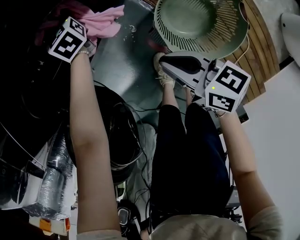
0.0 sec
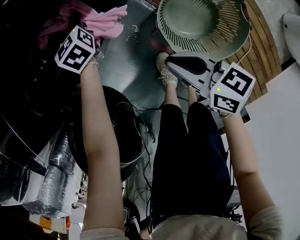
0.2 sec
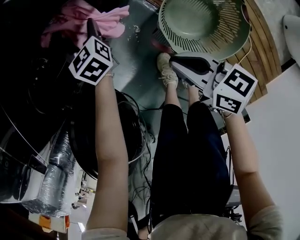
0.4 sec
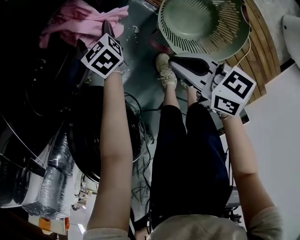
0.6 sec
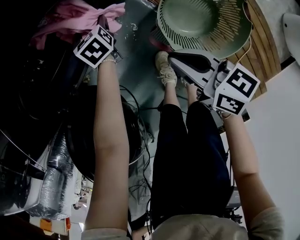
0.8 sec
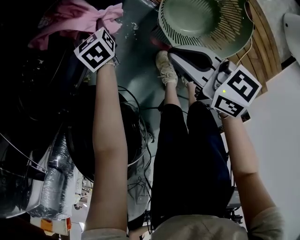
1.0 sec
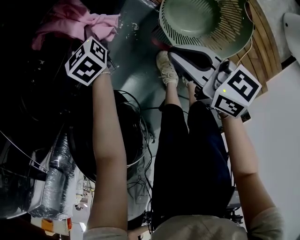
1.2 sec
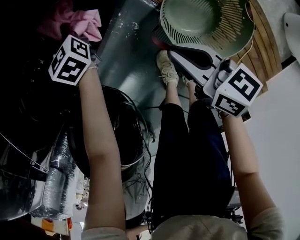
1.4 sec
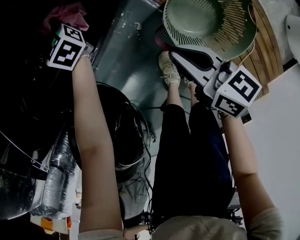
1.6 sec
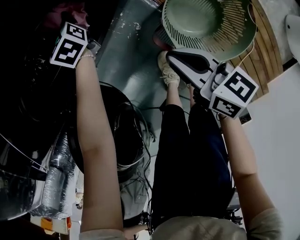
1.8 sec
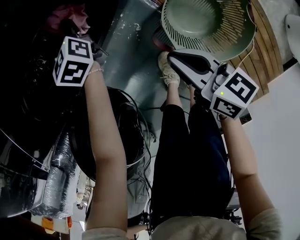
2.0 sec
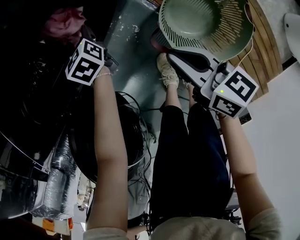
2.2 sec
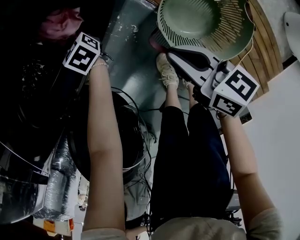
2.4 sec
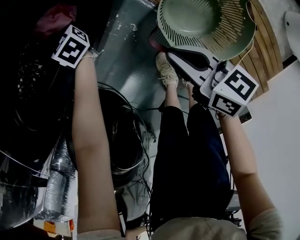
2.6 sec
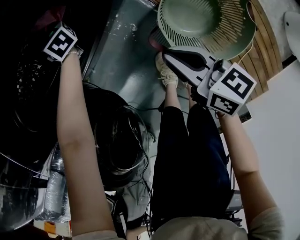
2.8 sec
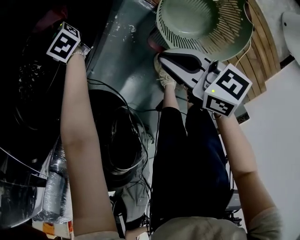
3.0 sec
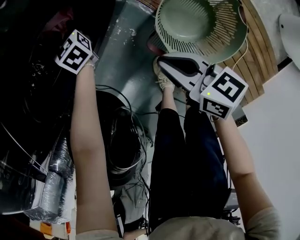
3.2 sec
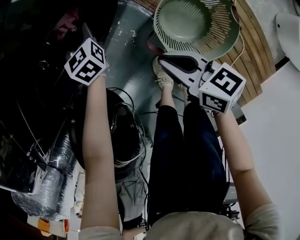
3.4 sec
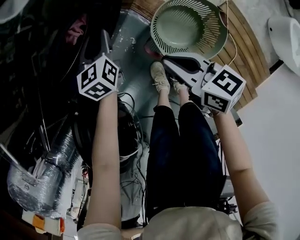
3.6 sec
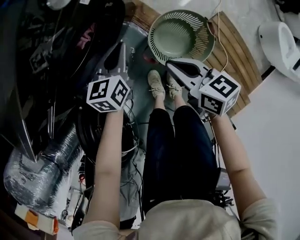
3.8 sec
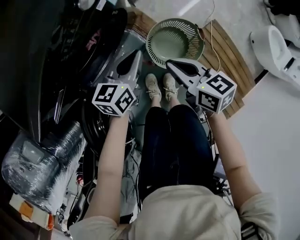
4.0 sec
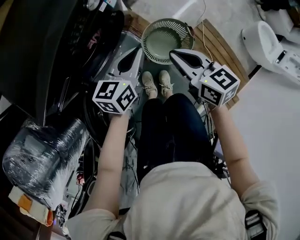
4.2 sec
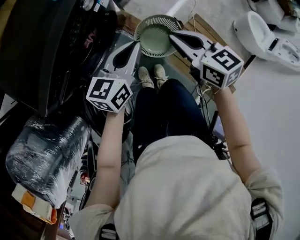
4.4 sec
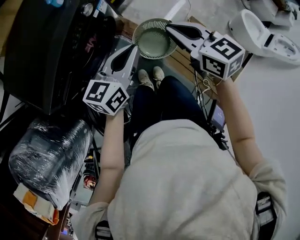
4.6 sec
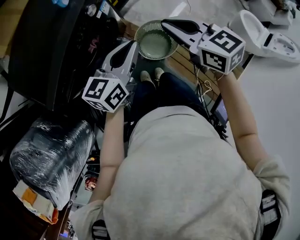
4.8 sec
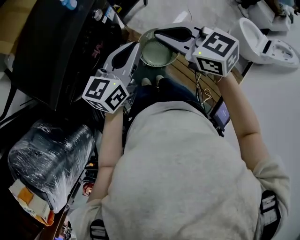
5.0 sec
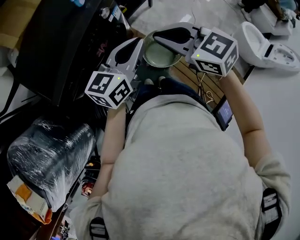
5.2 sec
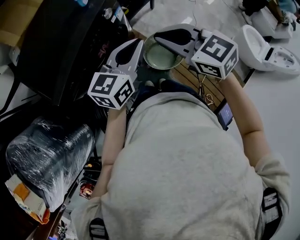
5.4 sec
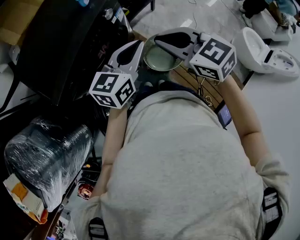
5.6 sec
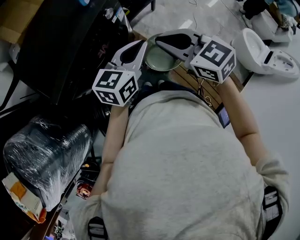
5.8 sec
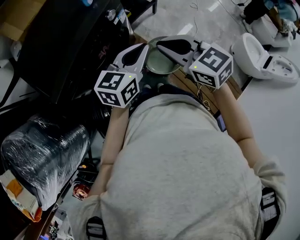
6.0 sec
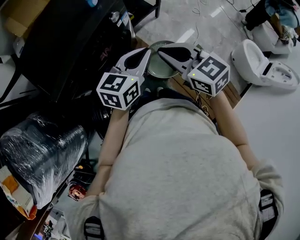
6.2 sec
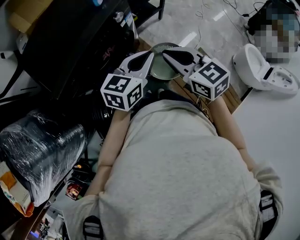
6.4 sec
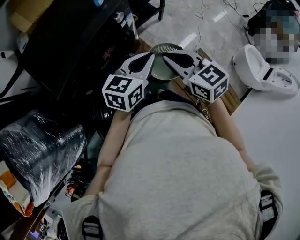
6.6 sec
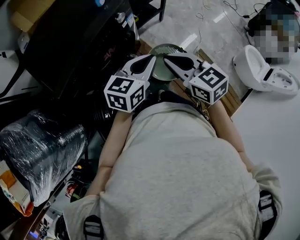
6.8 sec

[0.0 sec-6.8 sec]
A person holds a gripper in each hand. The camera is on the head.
0.0 sec to 1.4 sec: The left gripper goes backward and returns, approximately 10 cm each way, and opens, then closes once more.
1.4 sec to 2.8 sec: The left gripper swings forward and backward, approximately 10 cm each way, with 2 reversals, and opens, then closes again.
2.8 sec to 4.0 sec: The left gripper changes place by approximately 50 cm, and rotates approximately 70 degrees. Meanwhile the right gripper travels upward by roughly 25 cm.
4.0 sec to 5.4 sec: Both grippers move upward, approximately 30 cm. The left gripper rotates roughly 20 degrees. Meanwhile the right gripper rotates some 40 degrees.
5.4 sec to 6.8 sec: The right gripper ends up about 5 cm from where it was.

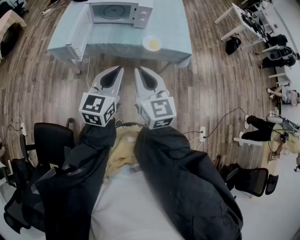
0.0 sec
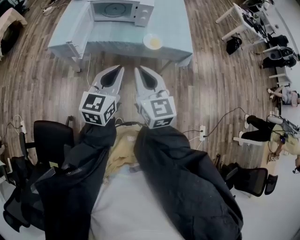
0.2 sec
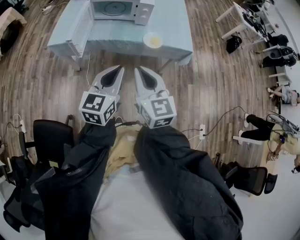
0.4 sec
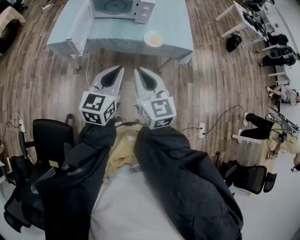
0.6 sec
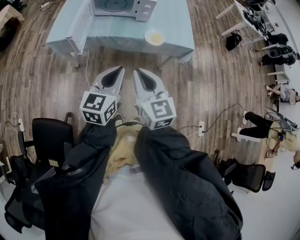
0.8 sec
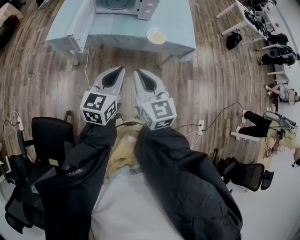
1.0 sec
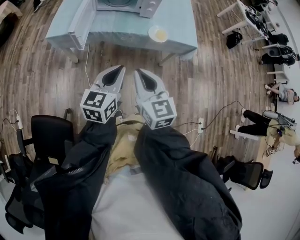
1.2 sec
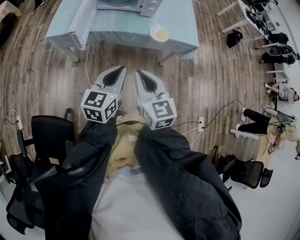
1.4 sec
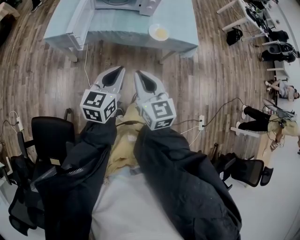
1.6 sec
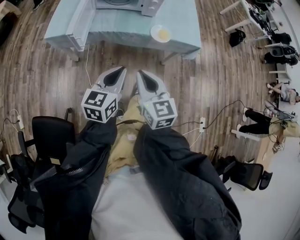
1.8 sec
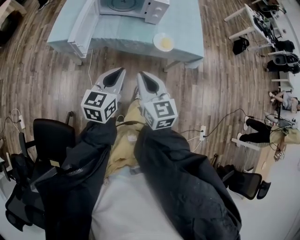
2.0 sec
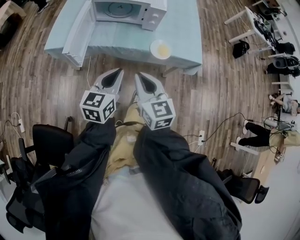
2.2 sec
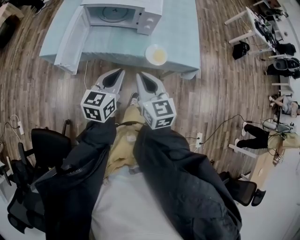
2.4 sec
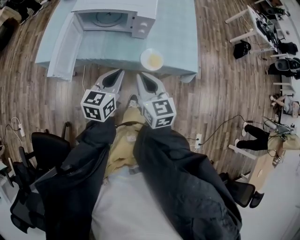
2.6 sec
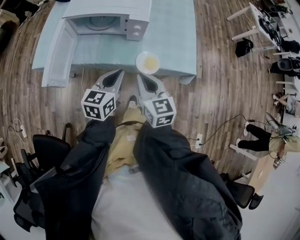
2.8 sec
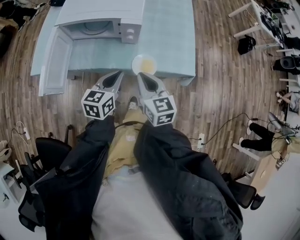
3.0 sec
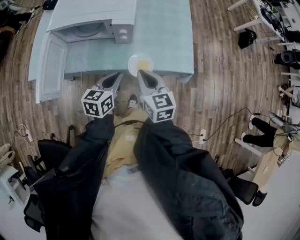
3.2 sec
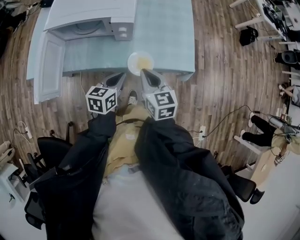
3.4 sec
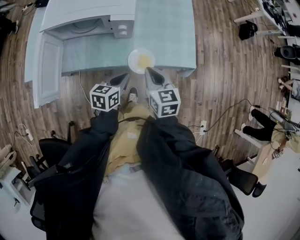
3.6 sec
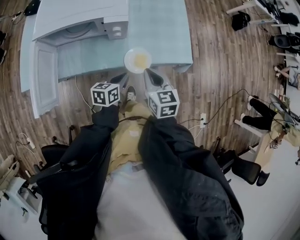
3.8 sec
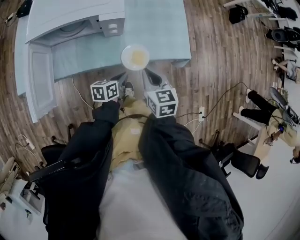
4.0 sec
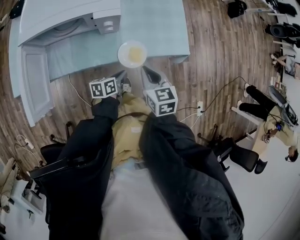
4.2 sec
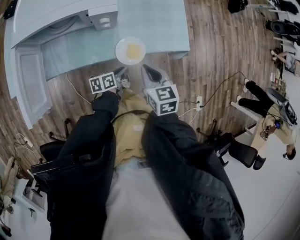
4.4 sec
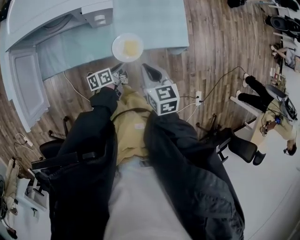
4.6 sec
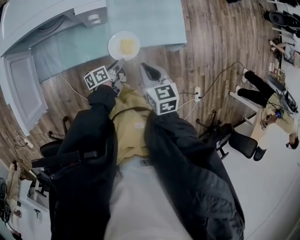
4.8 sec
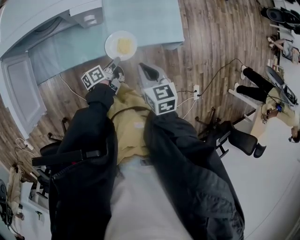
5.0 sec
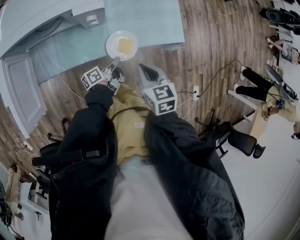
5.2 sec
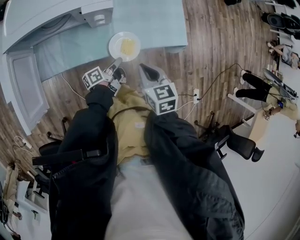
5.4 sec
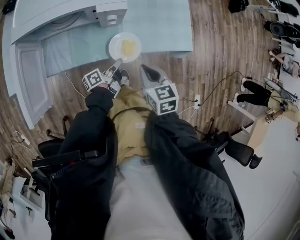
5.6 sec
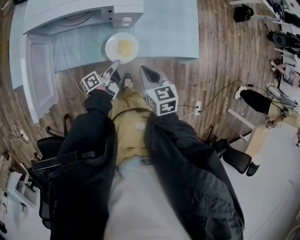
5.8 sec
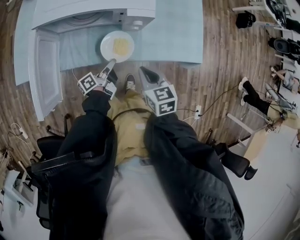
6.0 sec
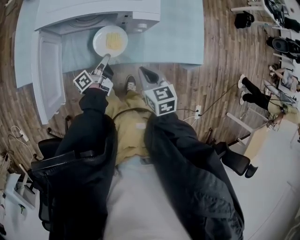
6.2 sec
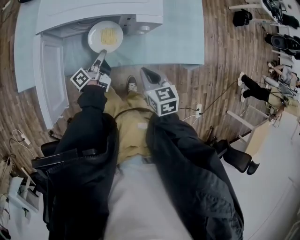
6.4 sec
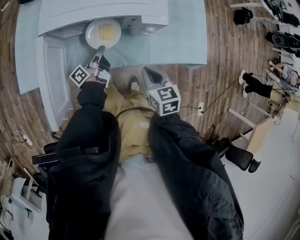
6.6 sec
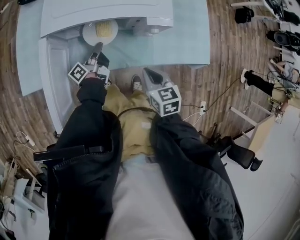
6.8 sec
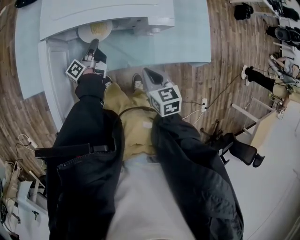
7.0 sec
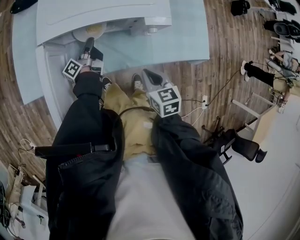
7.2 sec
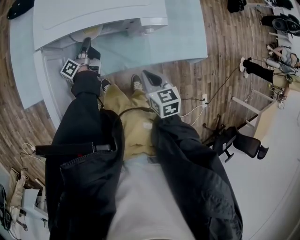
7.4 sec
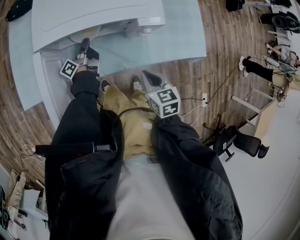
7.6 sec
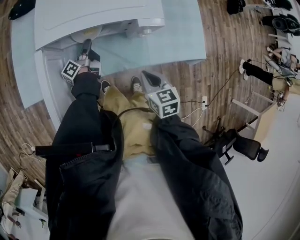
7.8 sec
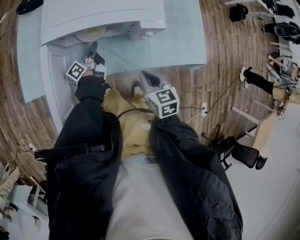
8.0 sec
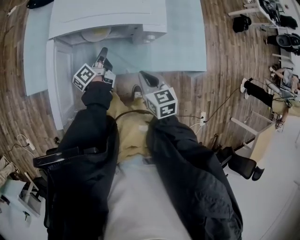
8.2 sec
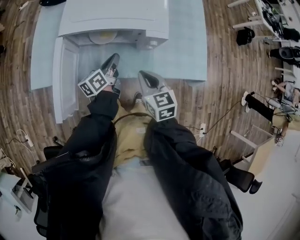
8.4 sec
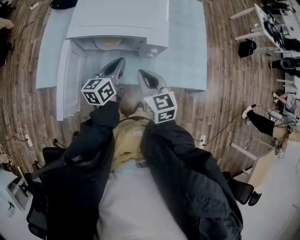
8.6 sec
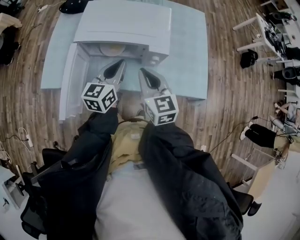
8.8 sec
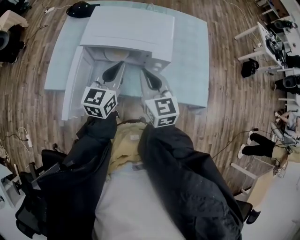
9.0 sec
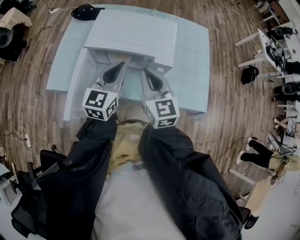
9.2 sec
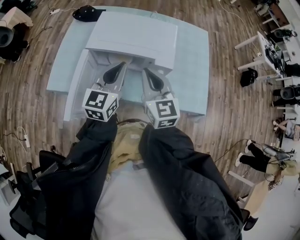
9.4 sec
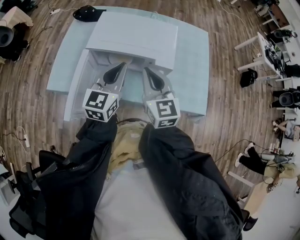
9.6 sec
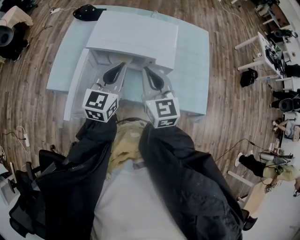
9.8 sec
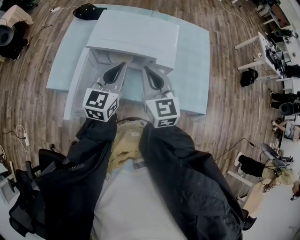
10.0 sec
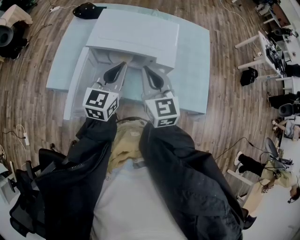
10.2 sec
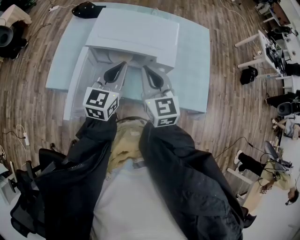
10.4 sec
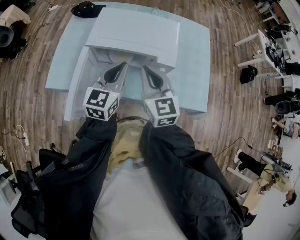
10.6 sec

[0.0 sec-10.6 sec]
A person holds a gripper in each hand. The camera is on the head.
0.0 sec to 1.6 sec: Both grippers move downward, roughly 5 cm.
1.6 sec to 3.0 sec: The right gripper travels forward and to the right by about 30 cm. The left gripper travels forward by about 30 cm.
3.0 sec to 4.6 sec: The right gripper travels downward and to the right by about 15 cm, and turns by roughly 20 degrees. Meanwhile the left gripper goes roughly 25 cm downward, rotates around the line of its fingers by roughly 50 degrees, counterclockwise from behind, and opens up.
4.6 sec to 6.0 sec: Both grippers travel together to the left, approximately 15 cm. The left gripper changes its angle by roughly 40 degrees, and closes.
6.0 sec to 7.6 sec: The right gripper shifts by roughly 5 cm, while the left gripper moves forward and to the left, some 25 cm.
7.6 sec to 9.0 sec: The right gripper goes approximately 20 cm upward, and points its fingers some 30 degrees further upward, while the left gripper is displaced upward by roughly 30 cm, and rolls clockwise, seen from behind, by approximately 80 degrees.
9.0 sec to 10.6 sec: The grippers stay close to where they were, moving slightly.

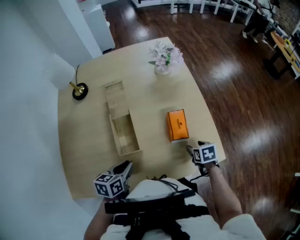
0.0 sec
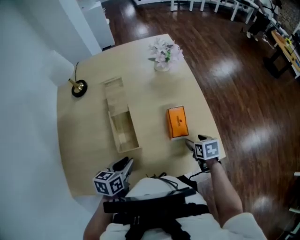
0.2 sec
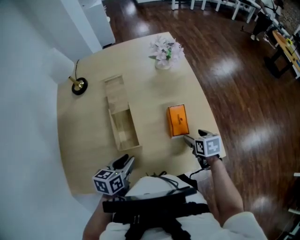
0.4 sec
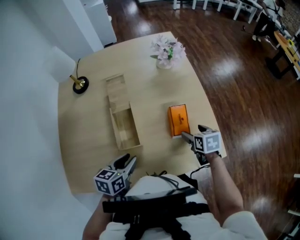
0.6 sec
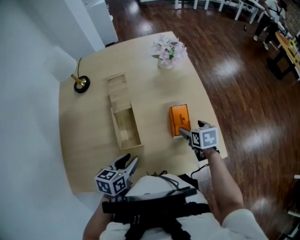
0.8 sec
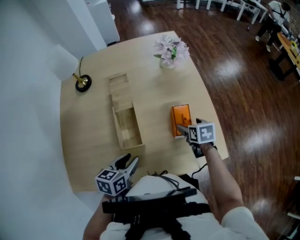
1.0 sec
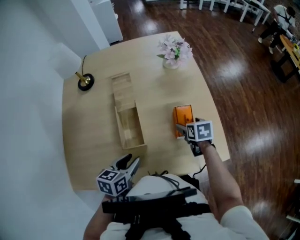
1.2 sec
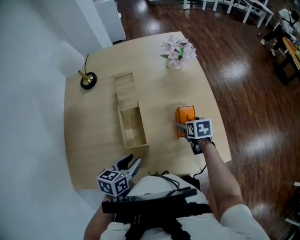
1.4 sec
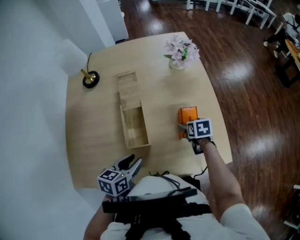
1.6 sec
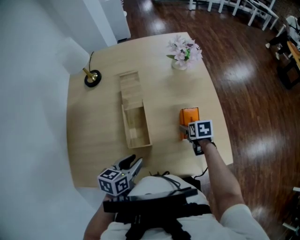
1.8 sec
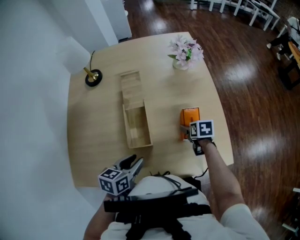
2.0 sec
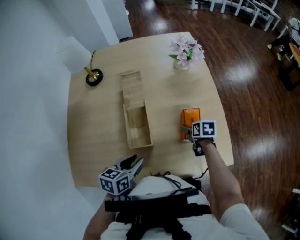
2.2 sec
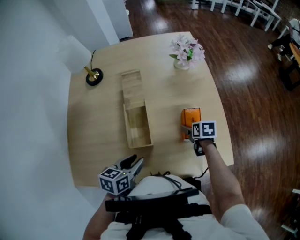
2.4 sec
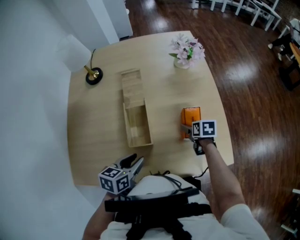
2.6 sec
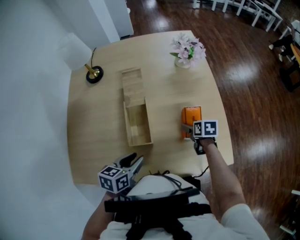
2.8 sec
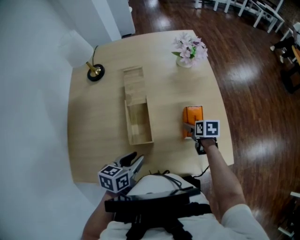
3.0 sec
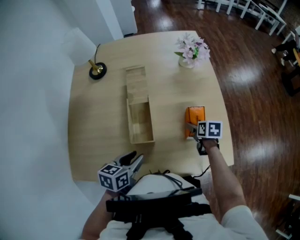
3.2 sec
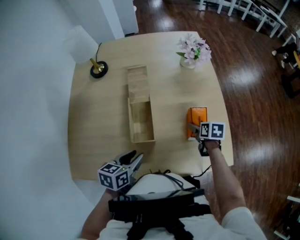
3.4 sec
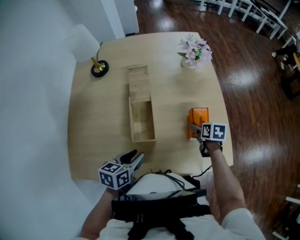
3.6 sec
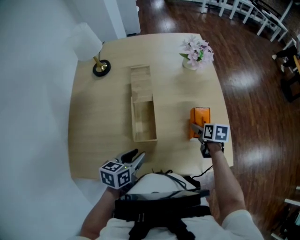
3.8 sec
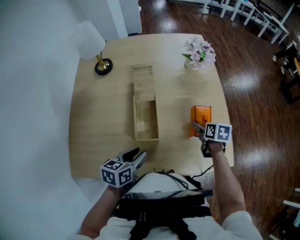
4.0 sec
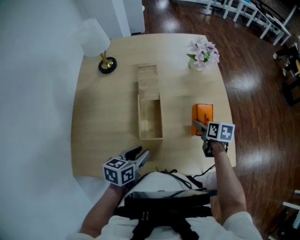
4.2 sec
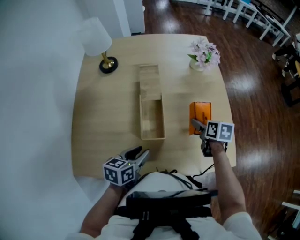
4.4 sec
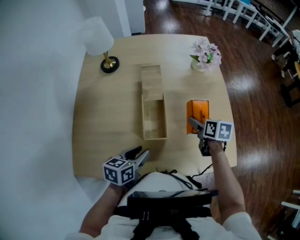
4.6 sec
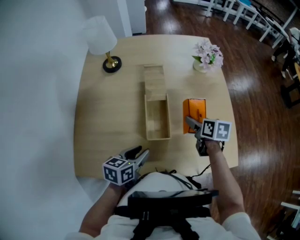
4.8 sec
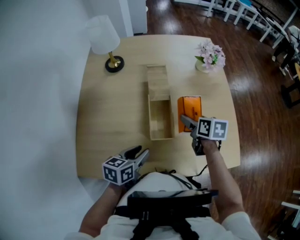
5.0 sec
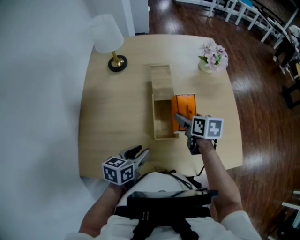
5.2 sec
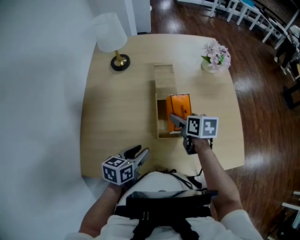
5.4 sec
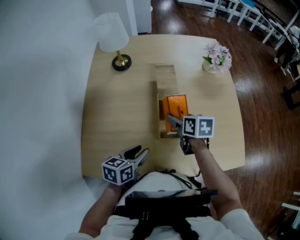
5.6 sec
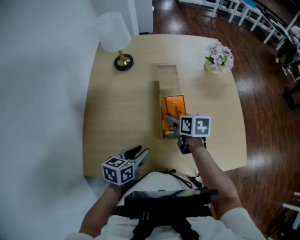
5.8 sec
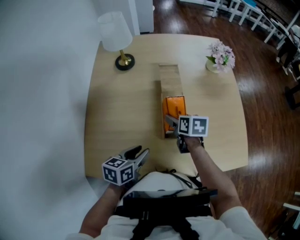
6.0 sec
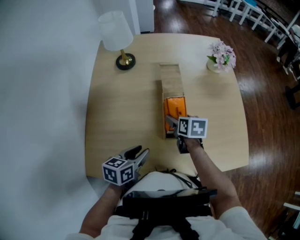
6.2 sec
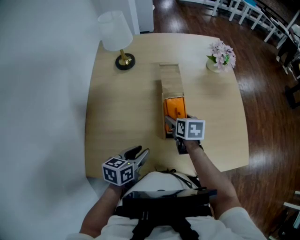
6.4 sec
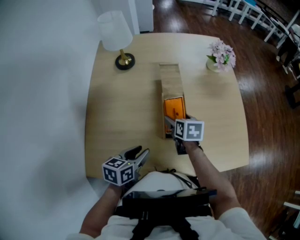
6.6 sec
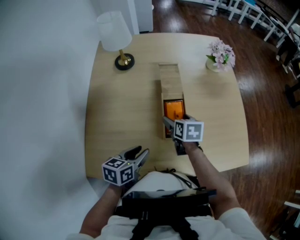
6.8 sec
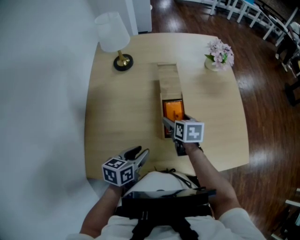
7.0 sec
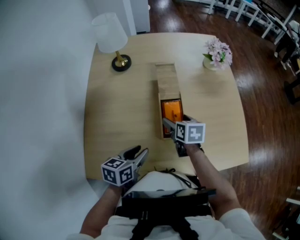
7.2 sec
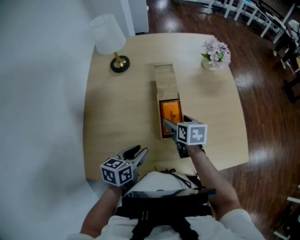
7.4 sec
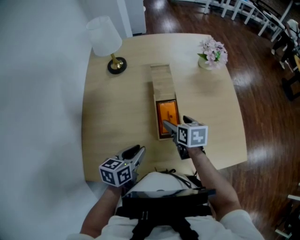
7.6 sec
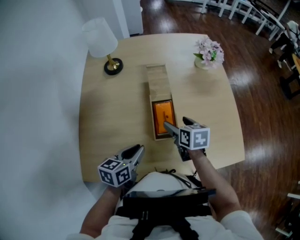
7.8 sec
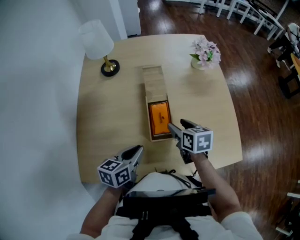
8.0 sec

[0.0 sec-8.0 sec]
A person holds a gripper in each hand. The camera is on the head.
0.0 sec to 1.6 sec: The right gripper heads forward and to the left, covering some 15 cm, and opens; the left gripper opens up.
1.6 sec to 3.2 sec: There are only small adjustments of the grippers.
3.2 sec to 4.8 sec: The left gripper goes about 5 cm to the left. The right gripper moves to the left and upward, approximately 15 cm.
4.8 sec to 6.4 sec: The right gripper heads to the left, covering approximately 15 cm; the left gripper shifts roughly 10 cm to the left.
6.4 sec to 8.0 sec: The right gripper heads to the right, covering approximately 5 cm; the left gripper shifts by roughly 5 cm, and closes.
